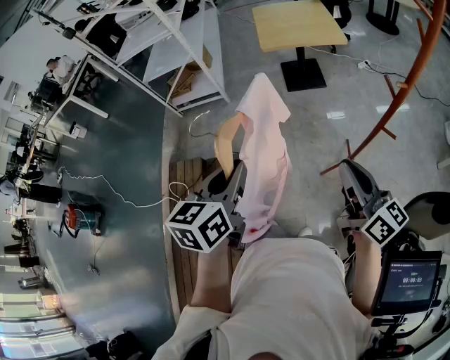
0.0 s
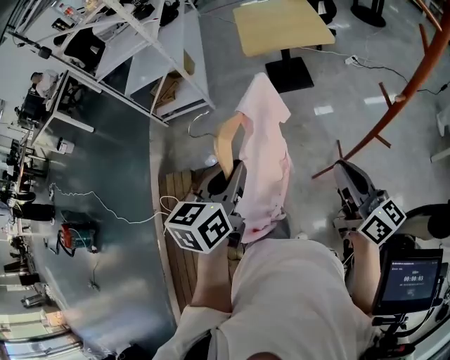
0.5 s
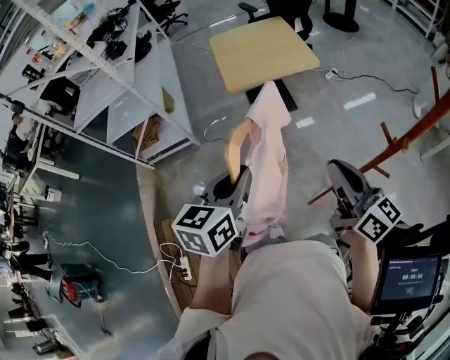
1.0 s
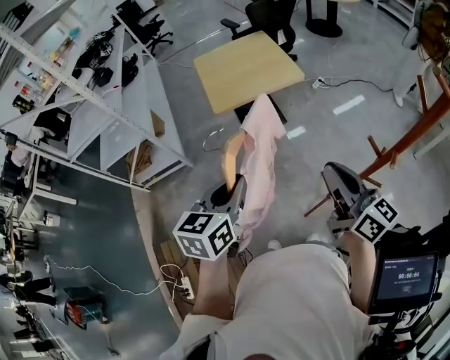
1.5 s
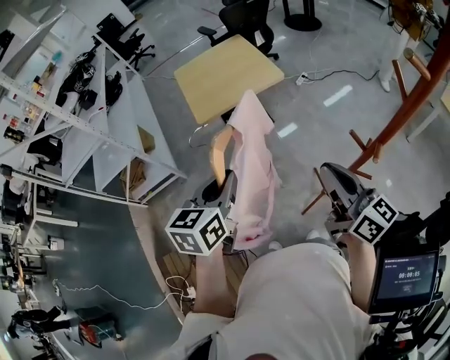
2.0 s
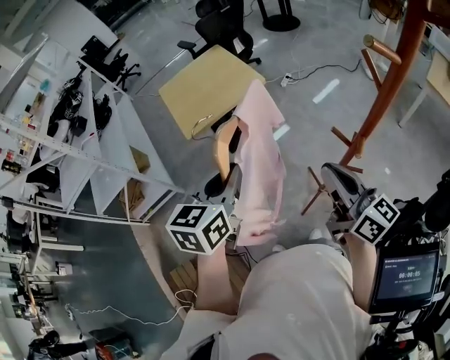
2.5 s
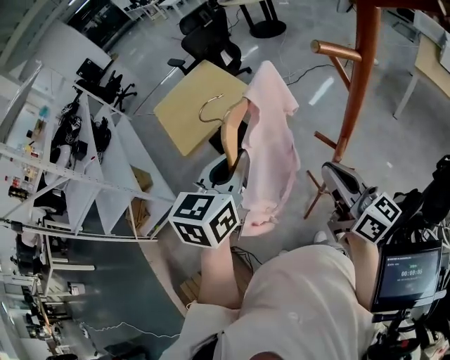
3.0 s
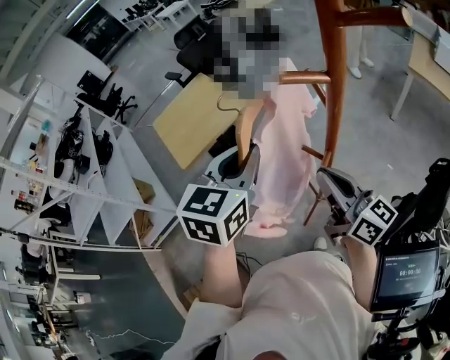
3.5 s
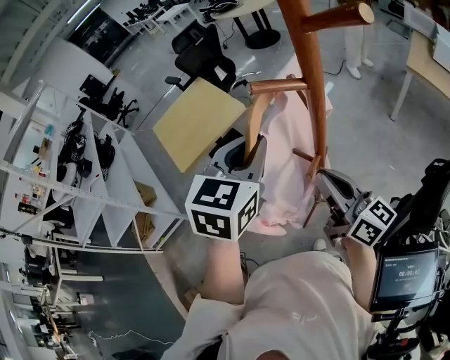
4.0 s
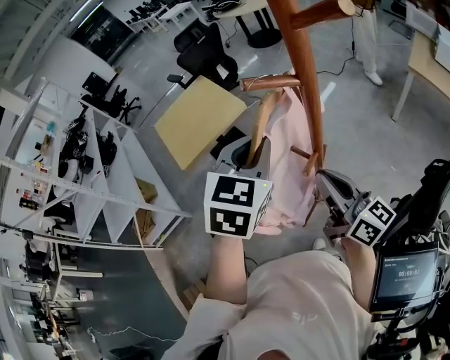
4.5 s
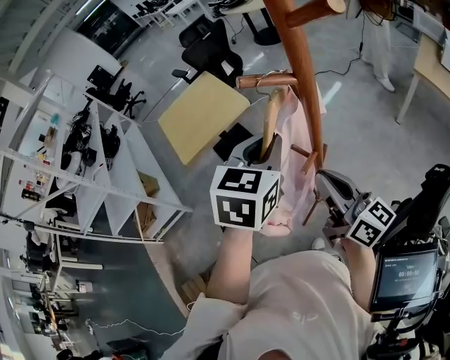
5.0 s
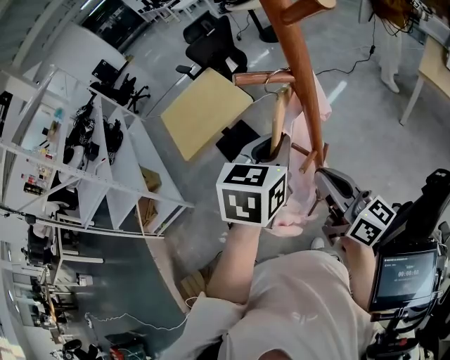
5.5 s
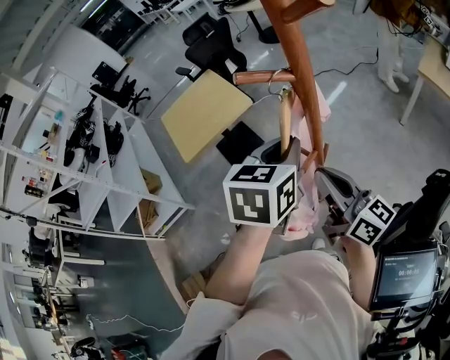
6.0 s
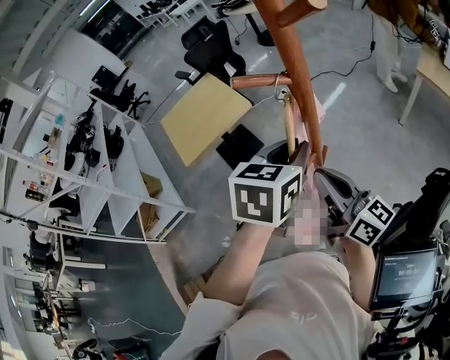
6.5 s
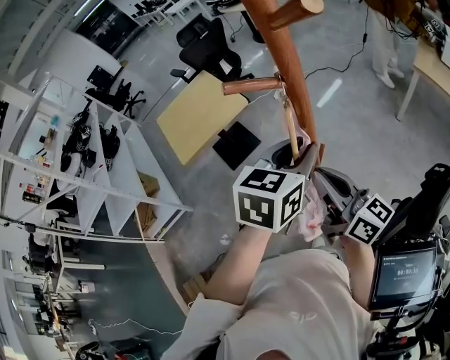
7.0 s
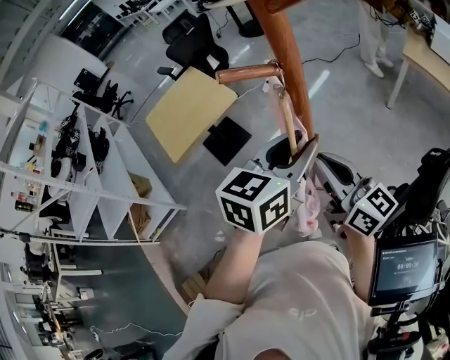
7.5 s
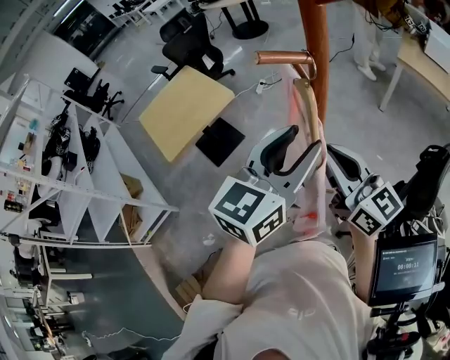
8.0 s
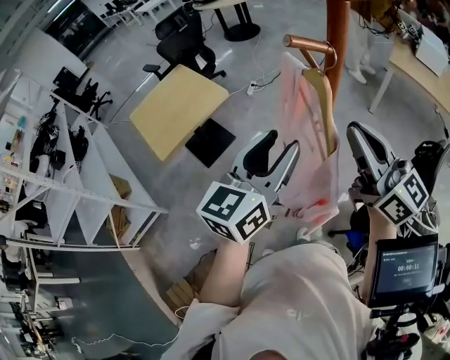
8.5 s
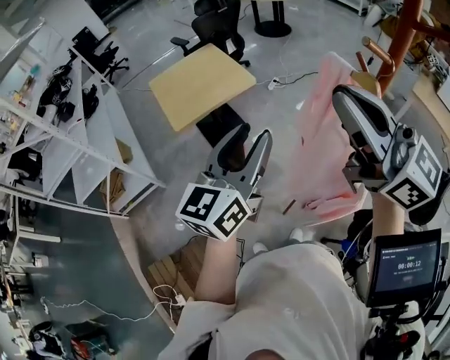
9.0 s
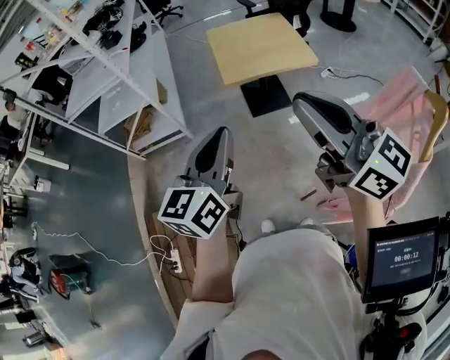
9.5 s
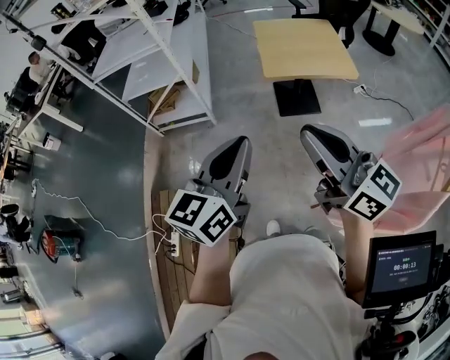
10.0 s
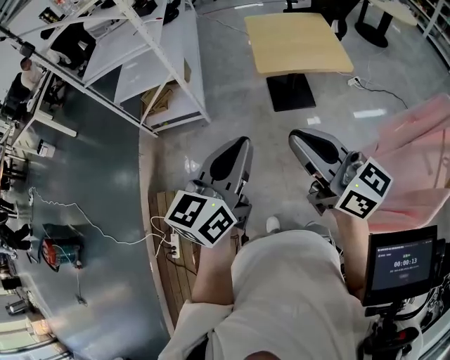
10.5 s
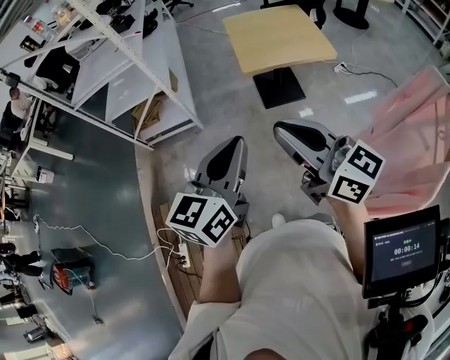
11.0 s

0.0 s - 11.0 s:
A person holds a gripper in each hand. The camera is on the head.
0.0 s - 2.0 s: The two grippers go some 35 cm forward. The left gripper turns by about 20 degrees.
2.0 s - 3.5 s: The right gripper heads to the right, covering approximately 20 cm. Meanwhile the left gripper goes roughly 30 cm to the right and upward, and rotates approximately 30 degrees.
3.5 s - 5.5 s: The left gripper is displaced to the right by about 10 cm.
5.5 s - 7.5 s: The left gripper goes some 5 cm to the right, changes its angle by roughly 20 degrees, and opens.
7.5 s - 9.0 s: The right gripper moves upward and to the left, some 25 cm, and turns by roughly 30 degrees, while the left gripper goes approximately 25 cm to the left, and turns by about 30 degrees.
9.0 s - 11.0 s: The right gripper shifts by about 40 cm, and swivels about 40 degrees; the left gripper ends up some 35 cm from where it was, swivels about 30 degrees, and closes its fingers.

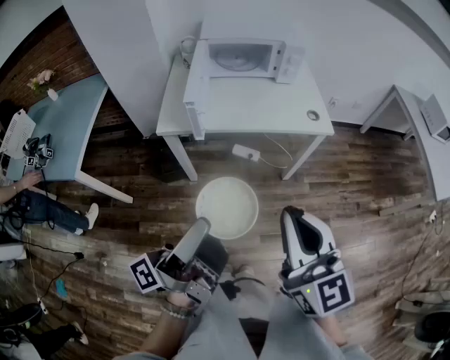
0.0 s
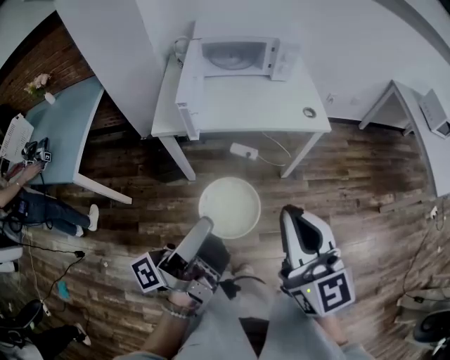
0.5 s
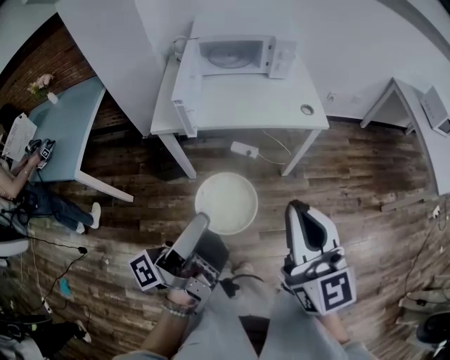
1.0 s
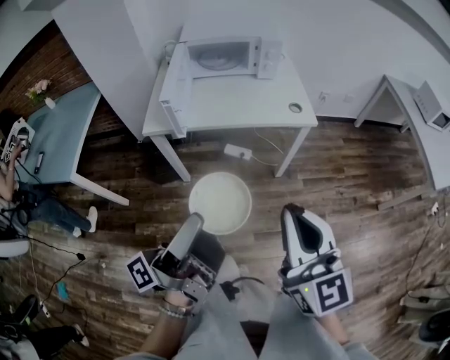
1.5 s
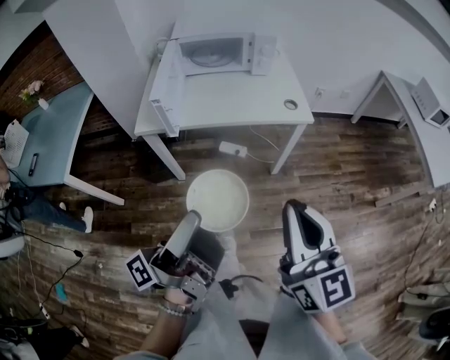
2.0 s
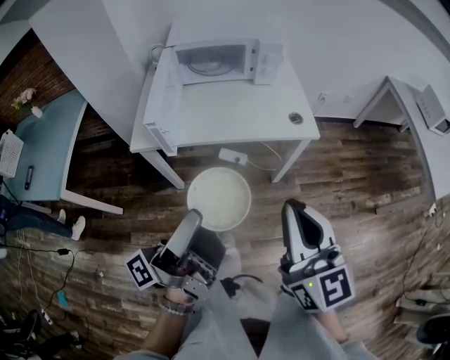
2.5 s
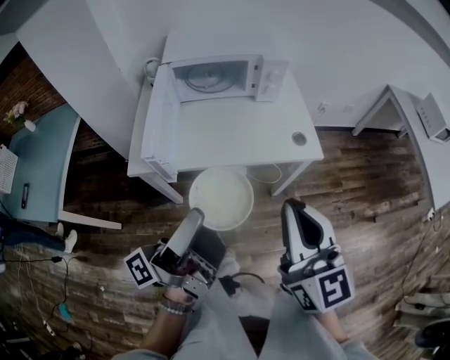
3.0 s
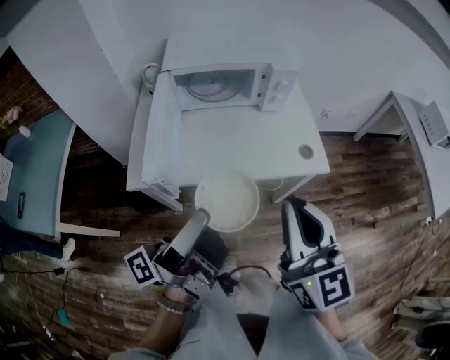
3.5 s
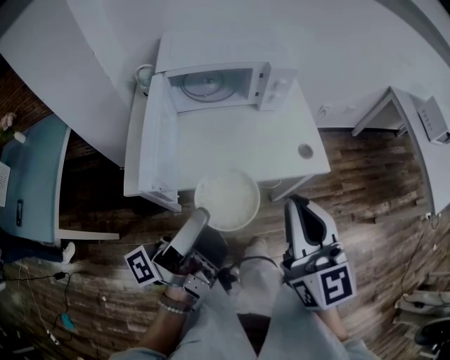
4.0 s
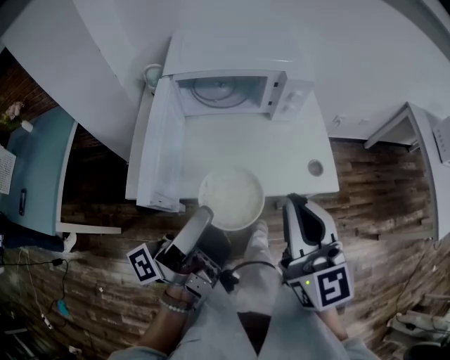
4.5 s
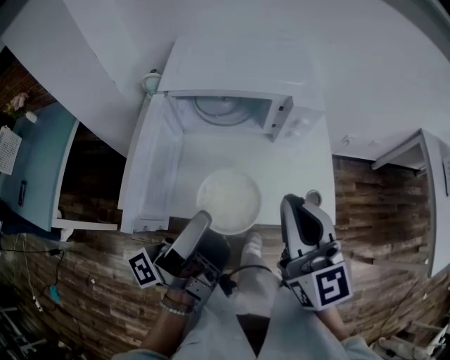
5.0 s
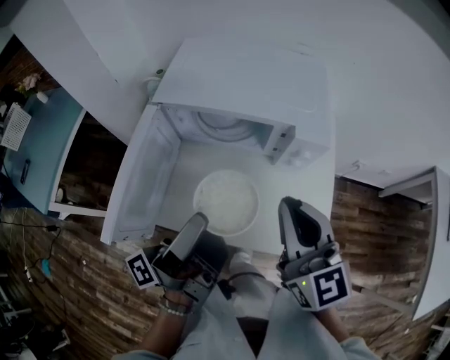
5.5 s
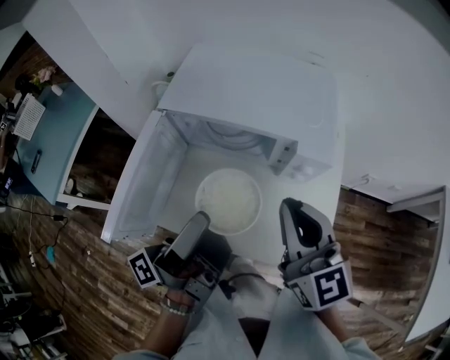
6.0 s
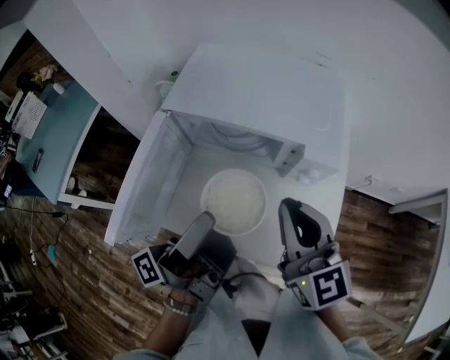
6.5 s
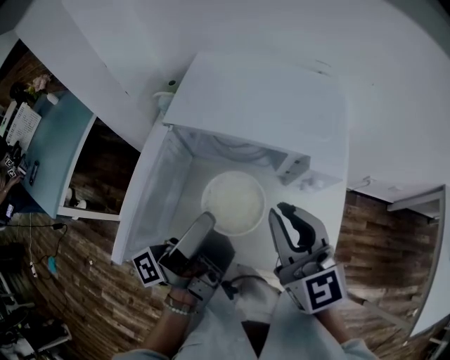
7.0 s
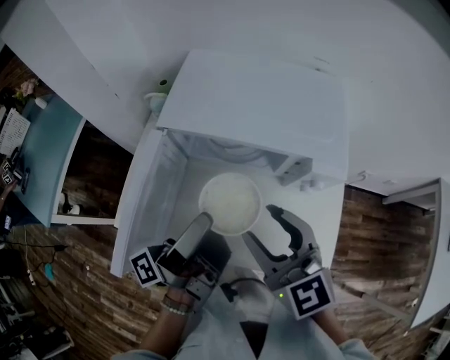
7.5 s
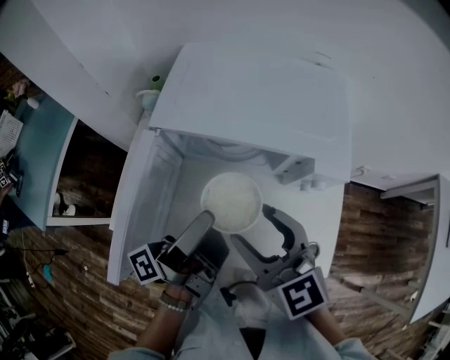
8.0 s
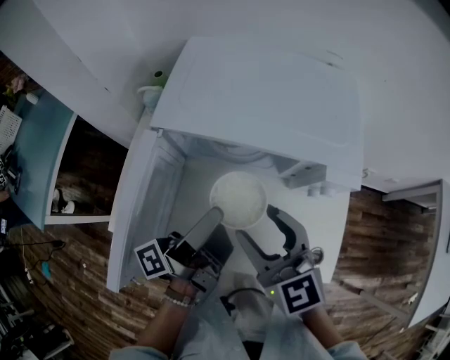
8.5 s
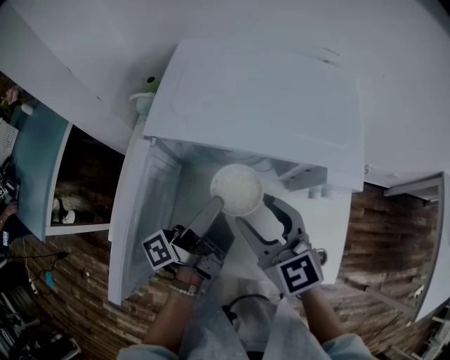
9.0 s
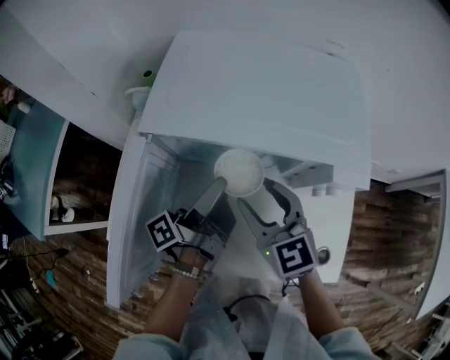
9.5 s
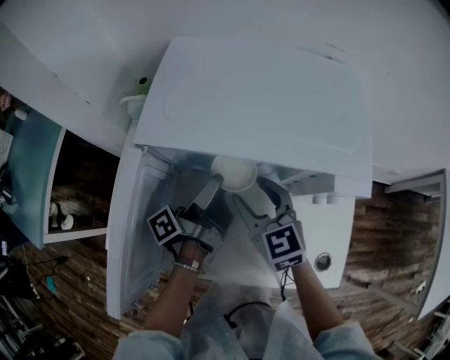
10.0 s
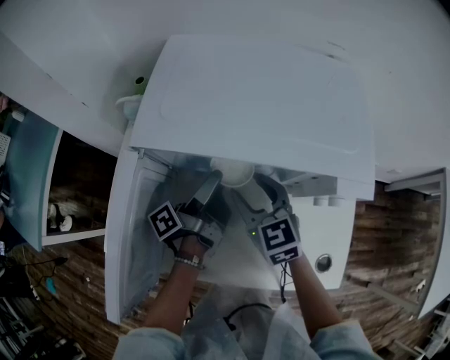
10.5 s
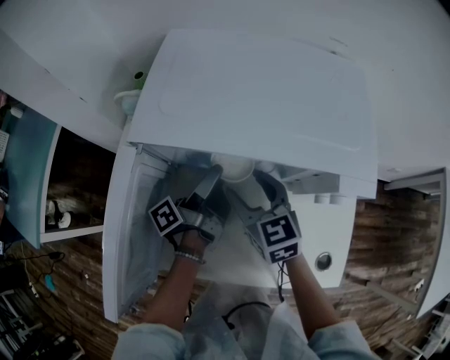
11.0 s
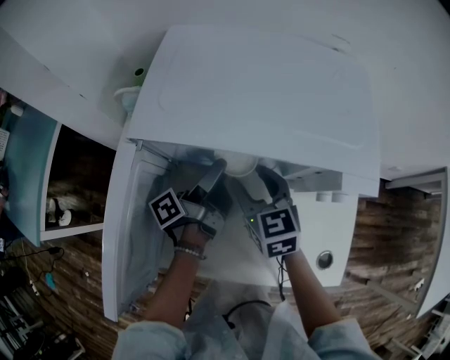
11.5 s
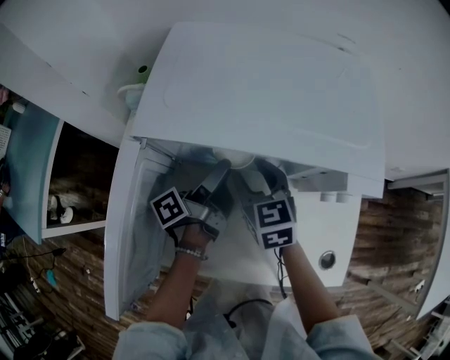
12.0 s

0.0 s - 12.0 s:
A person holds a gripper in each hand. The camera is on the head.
0.0 s - 2.0 s: The right gripper ends up roughly 10 cm from where it was.
2.0 s - 4.0 s: The right gripper moves approximately 25 cm.
4.0 s - 6.0 s: The right gripper ends up some 30 cm from where it was, and changes its angle by roughly 30 degrees.
6.0 s - 8.0 s: The right gripper shifts by about 10 cm, and opens.
8.0 s - 10.0 s: The right gripper moves downward, about 15 cm.
10.0 s - 12.0 s: The right gripper changes place by roughly 5 cm.

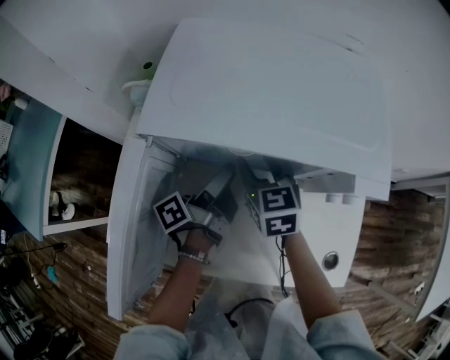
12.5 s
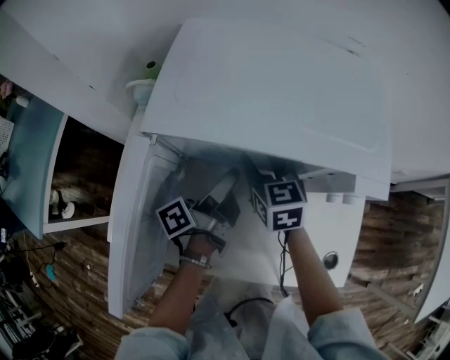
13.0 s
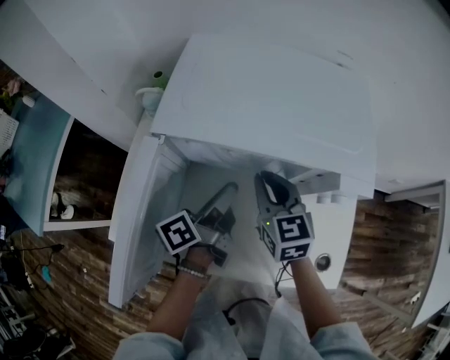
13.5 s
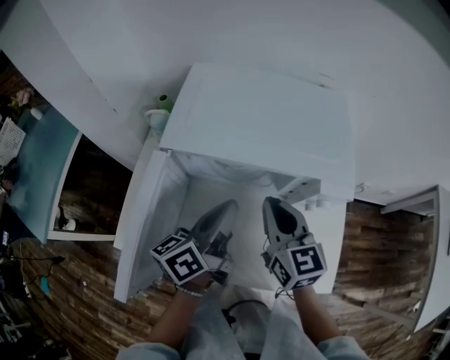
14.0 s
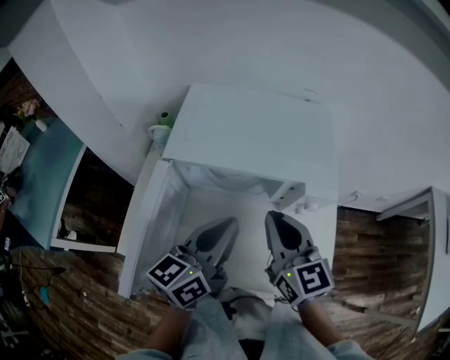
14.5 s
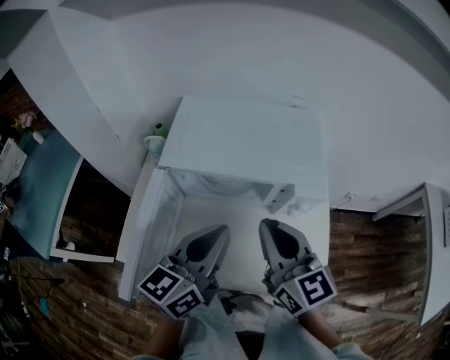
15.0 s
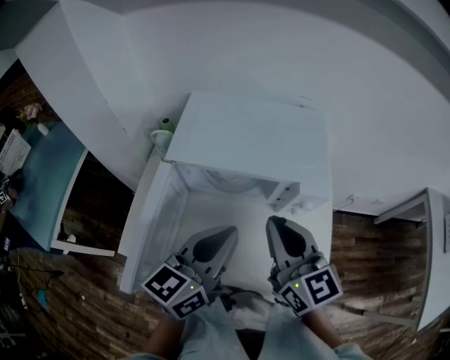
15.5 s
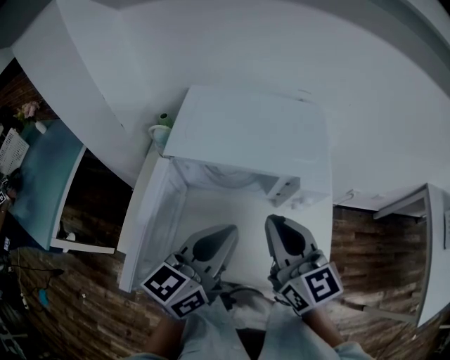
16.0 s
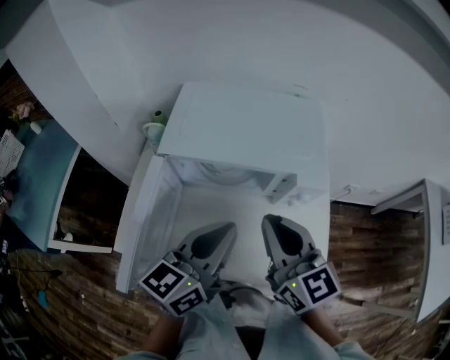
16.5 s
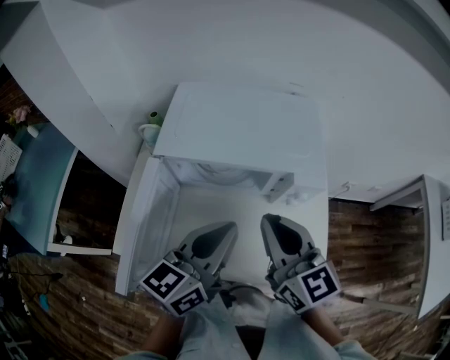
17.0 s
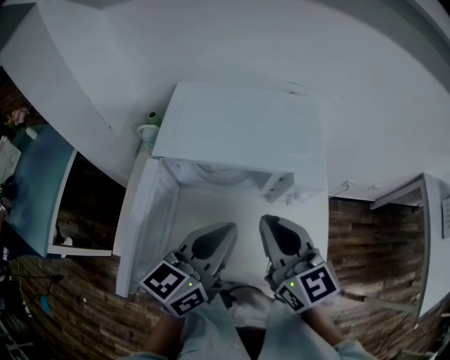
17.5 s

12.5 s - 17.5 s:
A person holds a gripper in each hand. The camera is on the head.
12.5 s - 15.0 s: The right gripper is displaced upward by roughly 20 cm, turns by roughly 30 degrees, and closes up.
